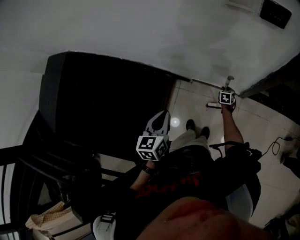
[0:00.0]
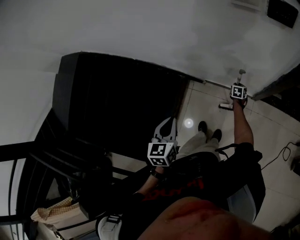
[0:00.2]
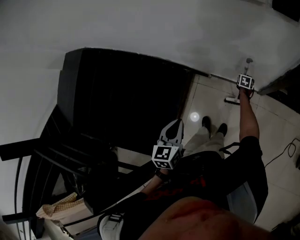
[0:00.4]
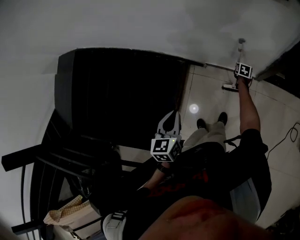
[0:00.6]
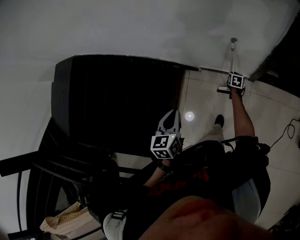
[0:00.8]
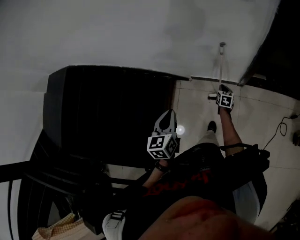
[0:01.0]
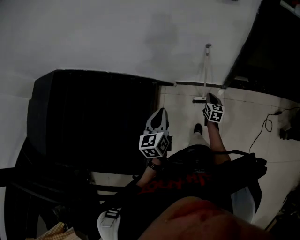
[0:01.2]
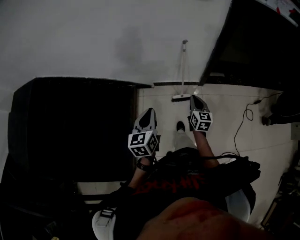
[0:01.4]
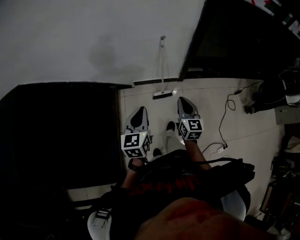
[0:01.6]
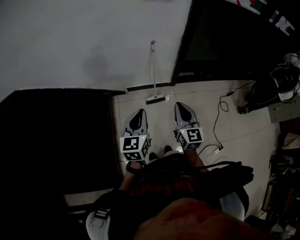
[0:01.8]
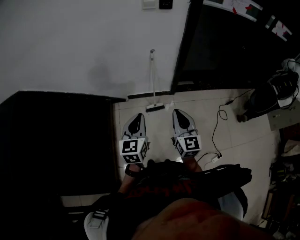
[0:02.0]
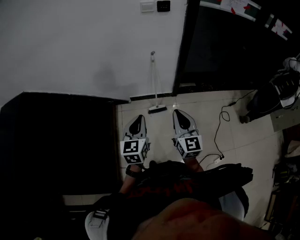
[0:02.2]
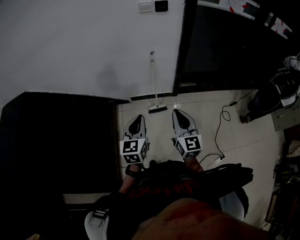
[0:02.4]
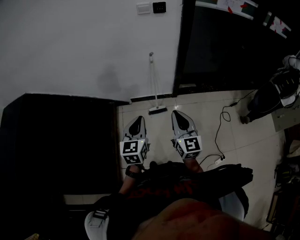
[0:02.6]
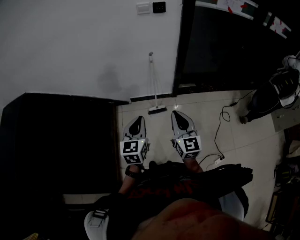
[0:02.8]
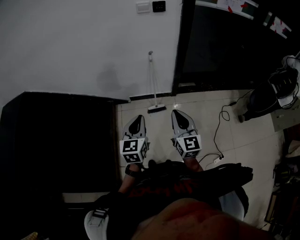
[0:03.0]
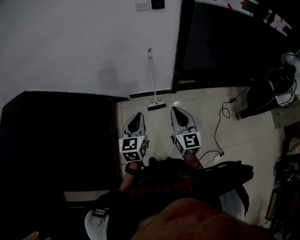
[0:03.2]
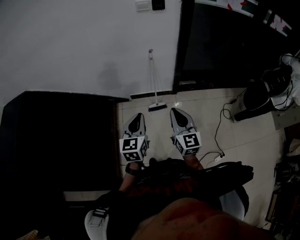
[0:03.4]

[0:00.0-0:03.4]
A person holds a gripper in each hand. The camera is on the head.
0.0 to 1.6 s: The right gripper goes approximately 60 cm backward and upward, and tilts its fingers about 40 degrees upward. The left gripper heads backward, covering about 25 cm, and swivels roughly 20 degrees.
1.6 to 3.4 s: The left gripper is displaced to the right, backward and upward by roughly 15 cm, while the right gripper goes some 20 cm backward, upward and to the right.

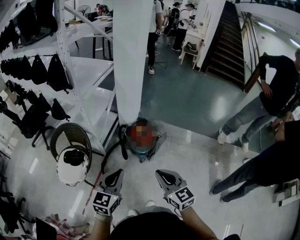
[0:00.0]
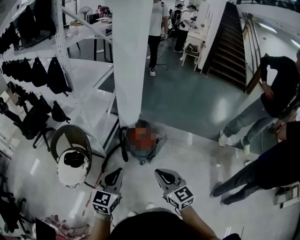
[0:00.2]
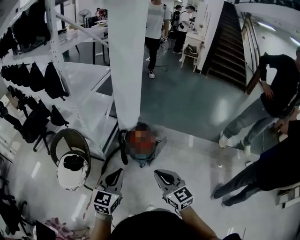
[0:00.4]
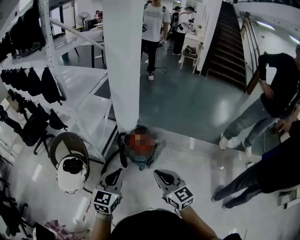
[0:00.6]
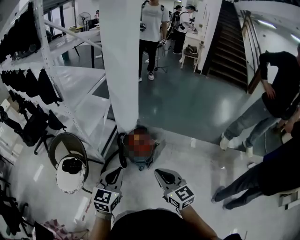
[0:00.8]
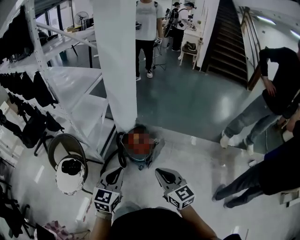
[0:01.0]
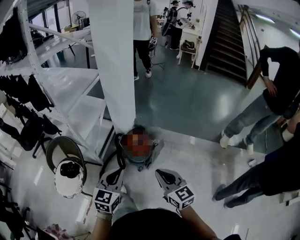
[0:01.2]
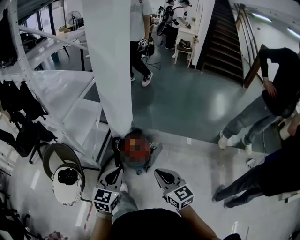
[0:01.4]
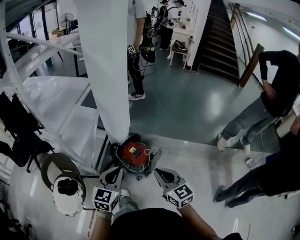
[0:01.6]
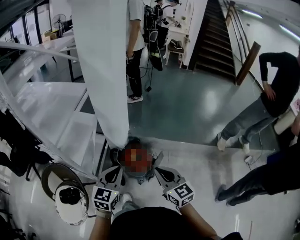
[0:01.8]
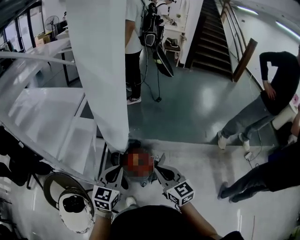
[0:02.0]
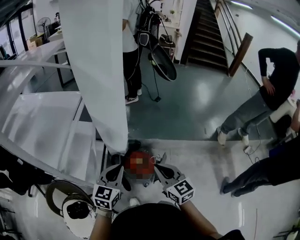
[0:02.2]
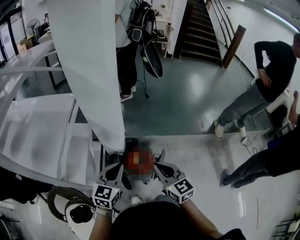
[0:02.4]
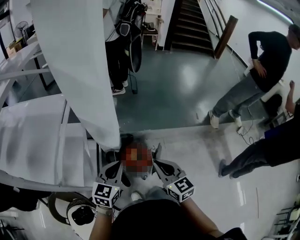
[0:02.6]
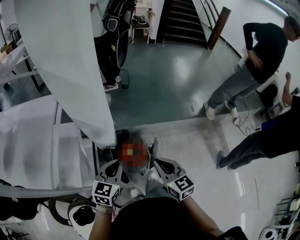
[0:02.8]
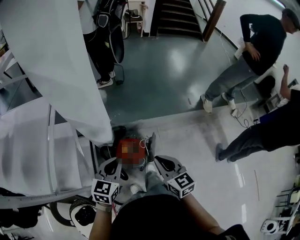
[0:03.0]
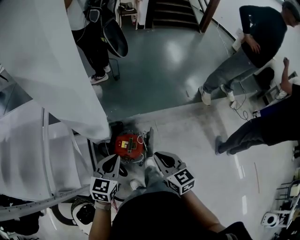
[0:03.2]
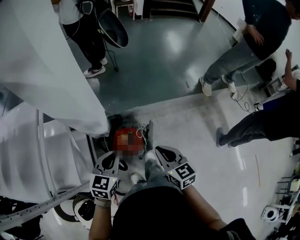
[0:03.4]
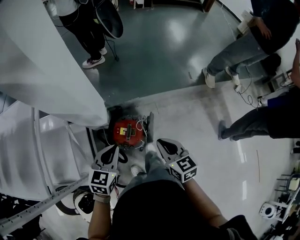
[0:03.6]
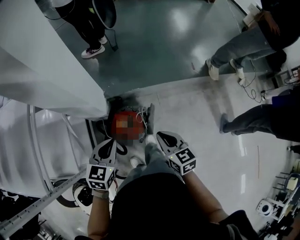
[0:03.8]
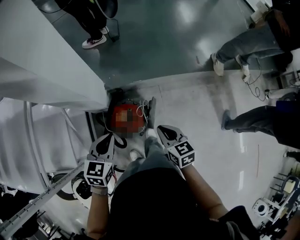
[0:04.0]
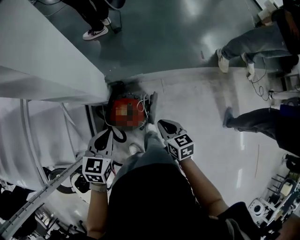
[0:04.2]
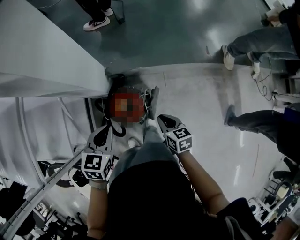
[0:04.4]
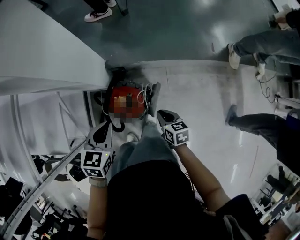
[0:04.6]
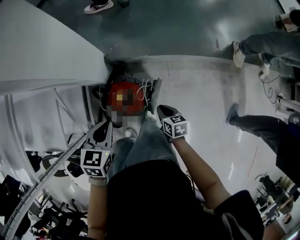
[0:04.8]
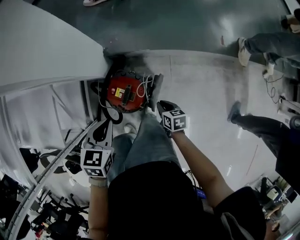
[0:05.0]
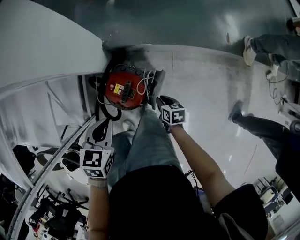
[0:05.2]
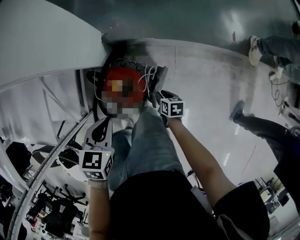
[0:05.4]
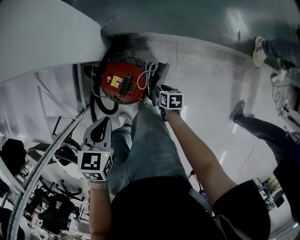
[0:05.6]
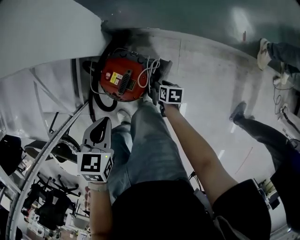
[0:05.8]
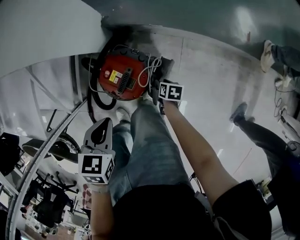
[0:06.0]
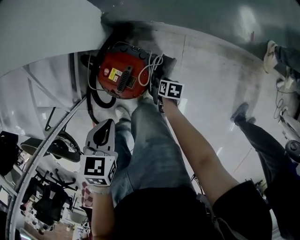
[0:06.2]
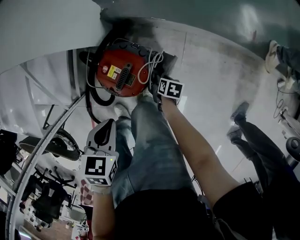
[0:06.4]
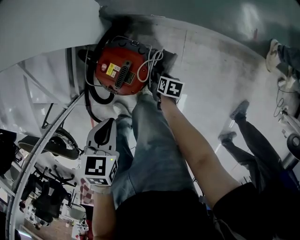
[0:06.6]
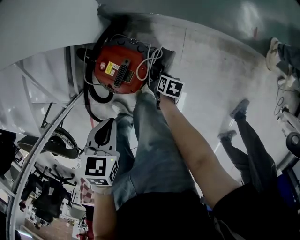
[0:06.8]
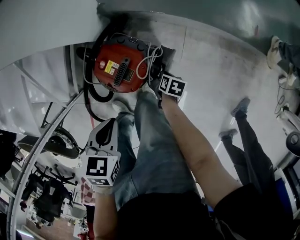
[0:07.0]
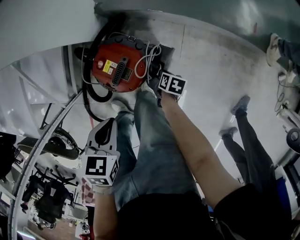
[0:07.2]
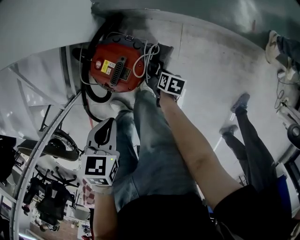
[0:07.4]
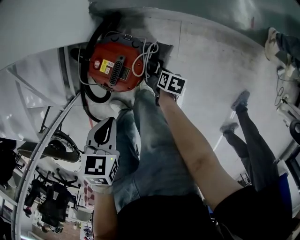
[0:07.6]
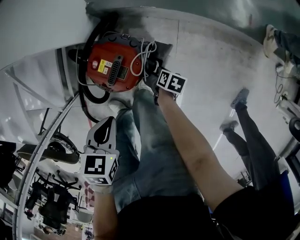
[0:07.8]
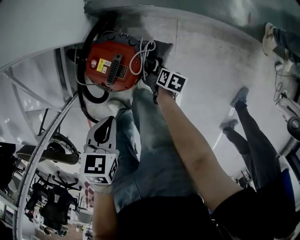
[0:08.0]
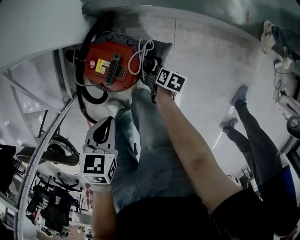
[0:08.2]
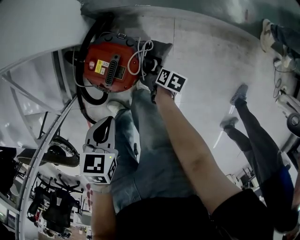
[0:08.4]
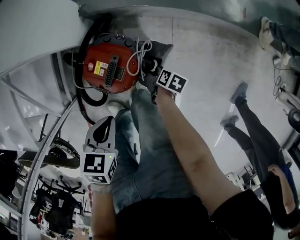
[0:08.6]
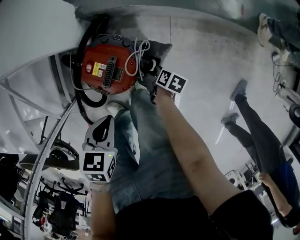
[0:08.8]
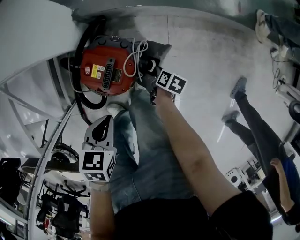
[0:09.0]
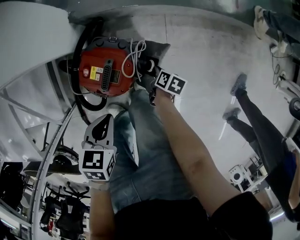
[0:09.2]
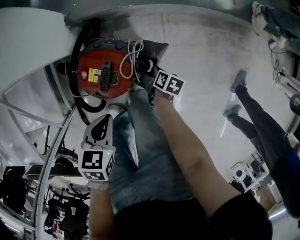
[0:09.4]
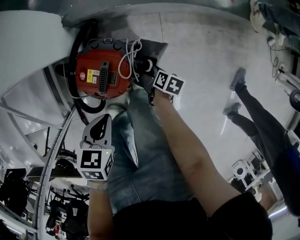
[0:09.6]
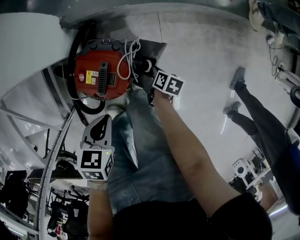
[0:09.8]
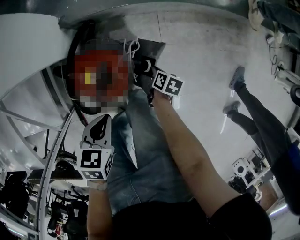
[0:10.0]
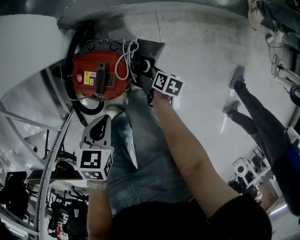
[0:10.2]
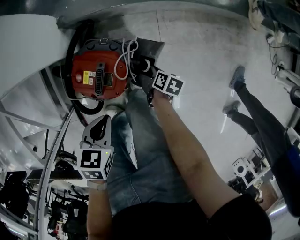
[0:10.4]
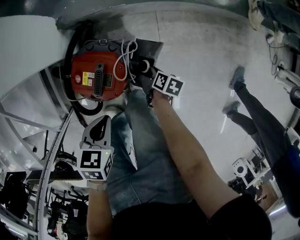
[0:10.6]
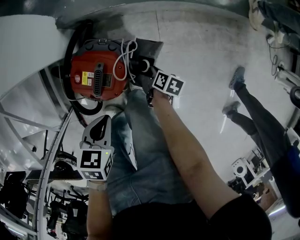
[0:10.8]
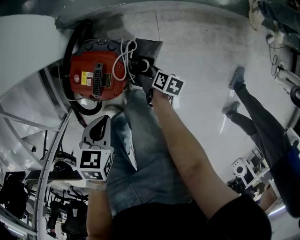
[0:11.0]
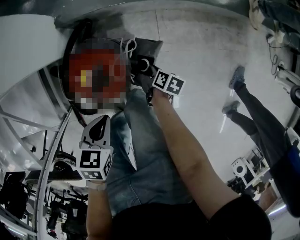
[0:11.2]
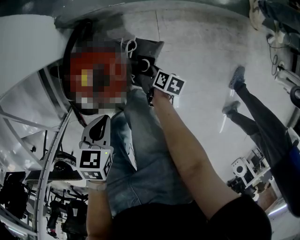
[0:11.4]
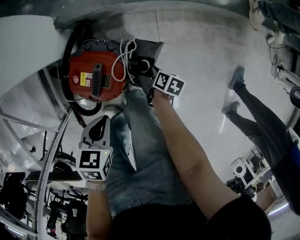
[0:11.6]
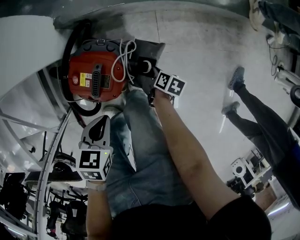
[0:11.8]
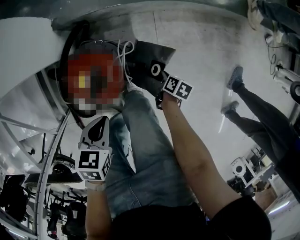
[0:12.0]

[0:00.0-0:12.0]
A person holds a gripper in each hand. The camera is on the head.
0.0 to 1.6 s: Both grippers travel together forward, some 25 cm.
1.6 to 3.0 s: The right gripper moves forward and to the left, roughly 15 cm, and turns by roughly 30 degrees; the left gripper heads forward, covering about 20 cm, and turns by some 20 degrees.
3.0 to 4.4 s: The right gripper heads downward, forward and to the right, covering some 30 cm, and turns by roughly 30 degrees; the left gripper travels downward, forward and to the right by about 15 cm.
4.4 to 6.0 s: The right gripper goes roughly 40 cm downward, changes its angle by some 30 degrees, and opens its fingers; the left gripper goes some 20 cm downward, and rotates roughly 20 degrees.
6.0 to 7.6 s: The right gripper closes; the left gripper is displaced downward by roughly 5 cm.
7.6 to 9.0 s: The grippers stay close to where they were, moving slightly.
9.0 to 10.4 s: The grippers make only small movements.
10.4 to 12.0 s: The right gripper moves to the right, approximately 5 cm.

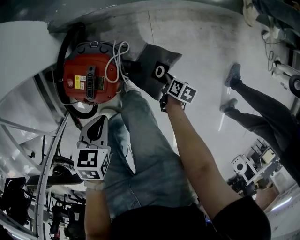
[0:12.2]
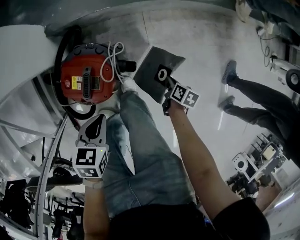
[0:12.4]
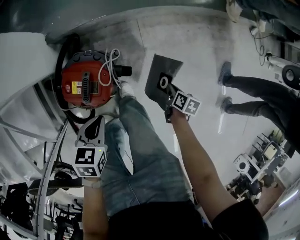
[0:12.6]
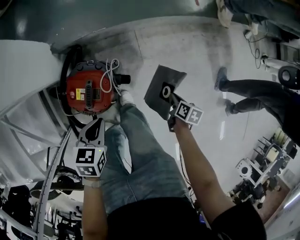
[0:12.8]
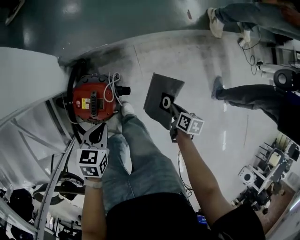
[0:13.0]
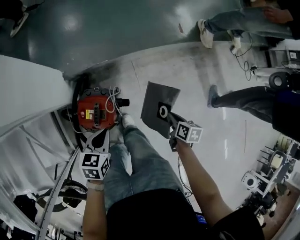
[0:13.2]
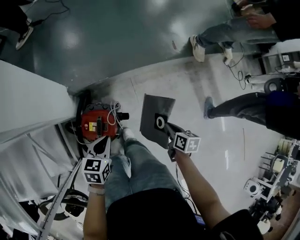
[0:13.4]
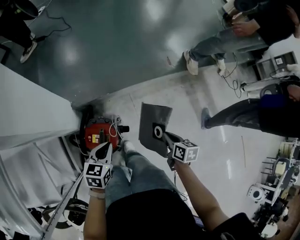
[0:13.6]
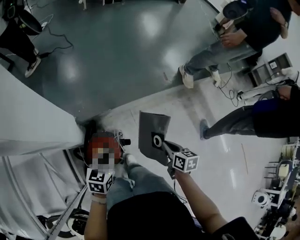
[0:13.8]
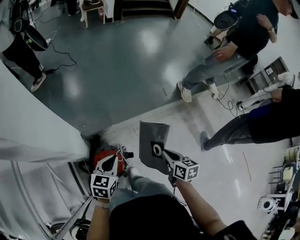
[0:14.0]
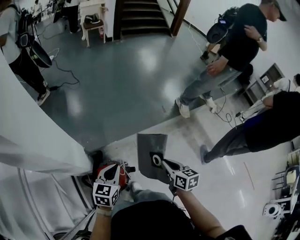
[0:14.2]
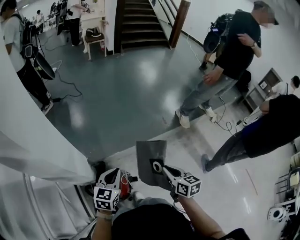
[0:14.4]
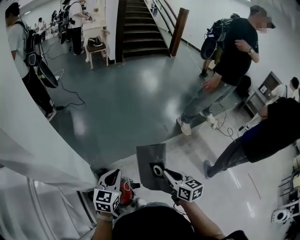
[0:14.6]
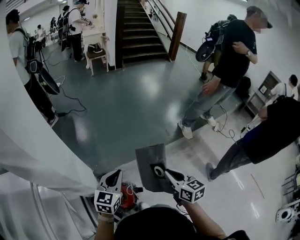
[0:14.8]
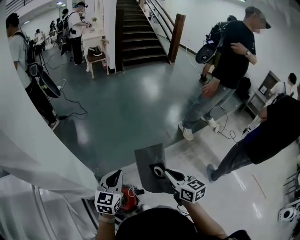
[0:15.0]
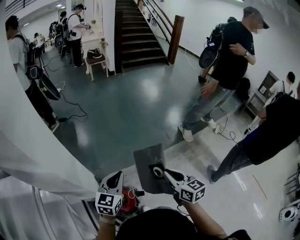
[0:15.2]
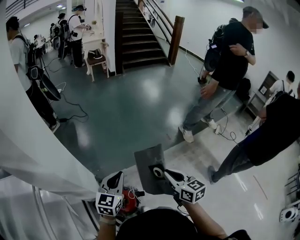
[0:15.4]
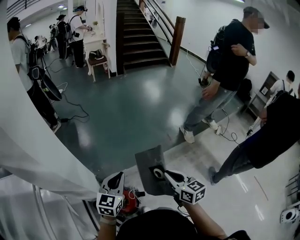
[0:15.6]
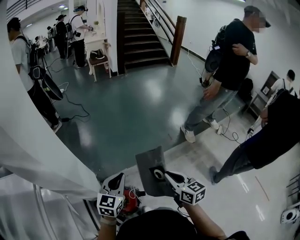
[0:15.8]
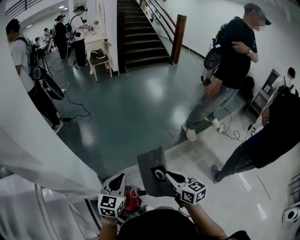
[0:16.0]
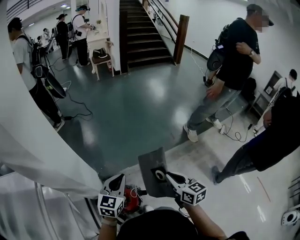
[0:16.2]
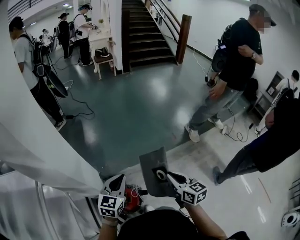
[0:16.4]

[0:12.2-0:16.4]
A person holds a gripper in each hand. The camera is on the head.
12.2 to 13.6 s: The left gripper is displaced upward by some 25 cm, and changes its angle by roughly 20 degrees; the right gripper shifts about 40 cm upward, and rotates roughly 20 degrees.
13.6 to 15.0 s: Both grippers move upward, some 30 cm. The left gripper changes its angle by some 30 degrees, while the right gripper turns by some 30 degrees.
15.0 to 16.4 s: The grippers stay close to where they were, moving slightly.

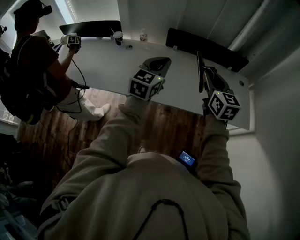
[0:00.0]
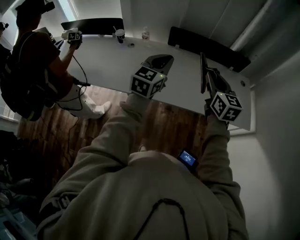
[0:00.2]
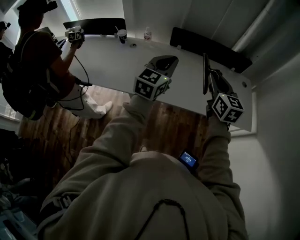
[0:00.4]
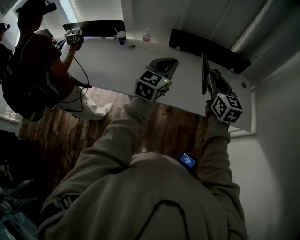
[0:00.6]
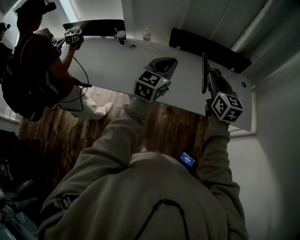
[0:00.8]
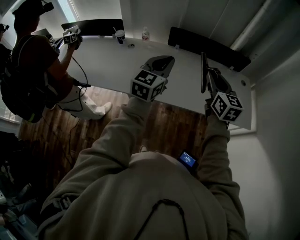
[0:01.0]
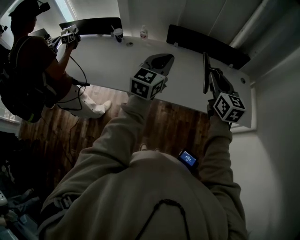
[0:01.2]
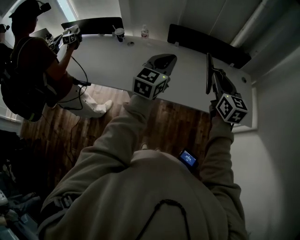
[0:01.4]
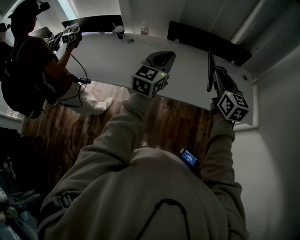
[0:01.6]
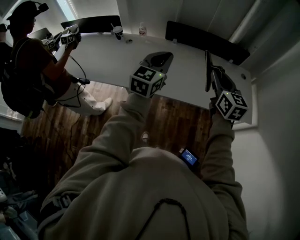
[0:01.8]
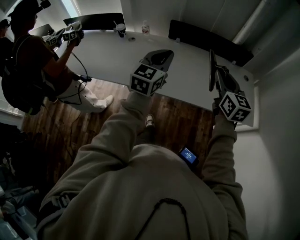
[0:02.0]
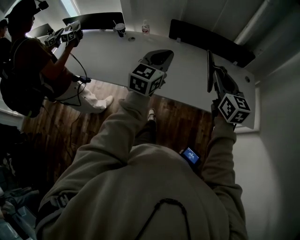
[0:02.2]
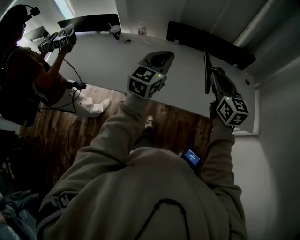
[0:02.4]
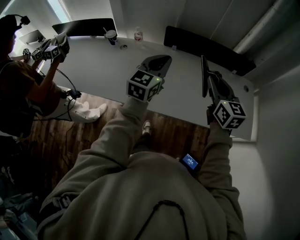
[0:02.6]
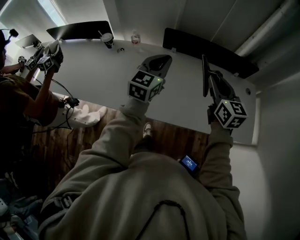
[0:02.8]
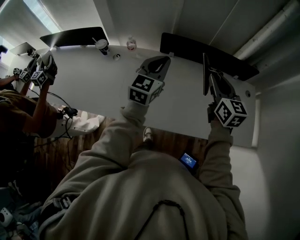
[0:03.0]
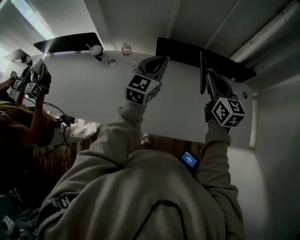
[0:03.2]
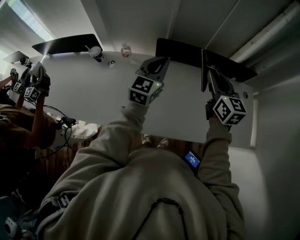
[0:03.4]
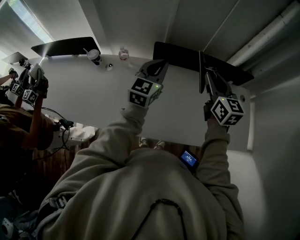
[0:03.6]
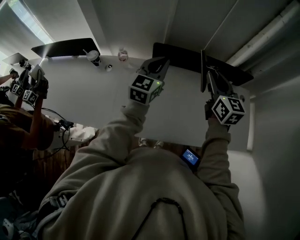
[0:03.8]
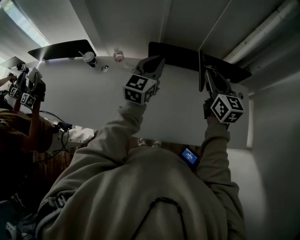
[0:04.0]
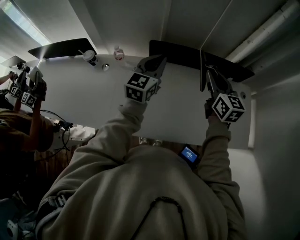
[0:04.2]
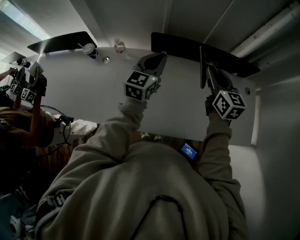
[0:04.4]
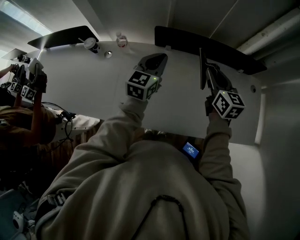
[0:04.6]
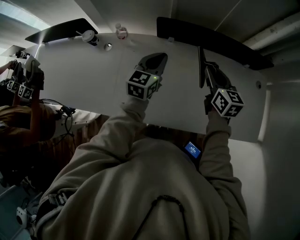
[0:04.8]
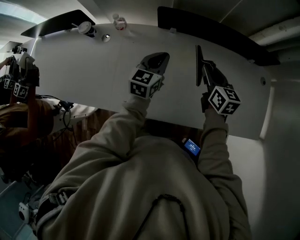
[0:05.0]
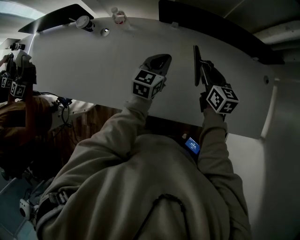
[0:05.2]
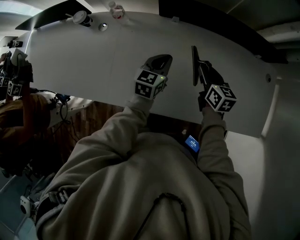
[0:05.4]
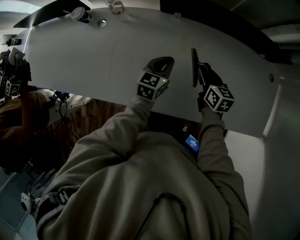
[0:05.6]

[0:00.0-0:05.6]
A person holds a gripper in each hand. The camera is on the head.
0.0 to 1.4 s: There are only small adjustments of the grippers.
1.4 to 2.8 s: Both grippers travel together forward, about 20 cm.
2.8 to 4.2 s: Both grippers travel together forward, roughly 15 cm.
4.2 to 5.6 s: Both grippers travel together downward, roughly 30 cm. The left gripper turns by approximately 30 degrees. Meanwhile the right gripper turns by some 30 degrees.
